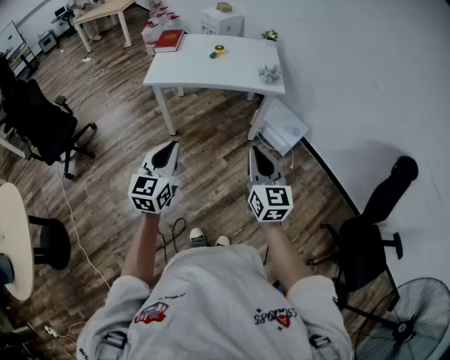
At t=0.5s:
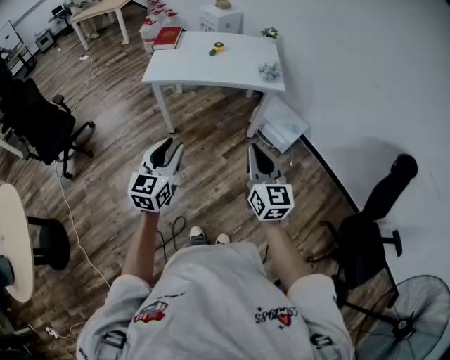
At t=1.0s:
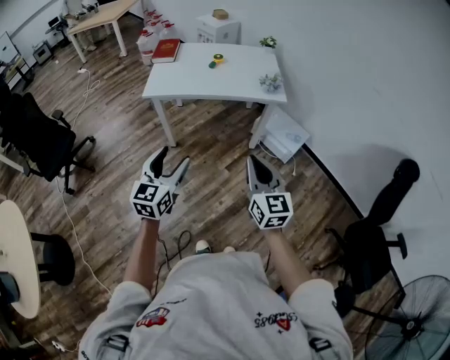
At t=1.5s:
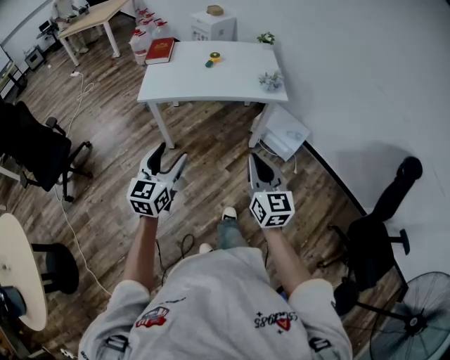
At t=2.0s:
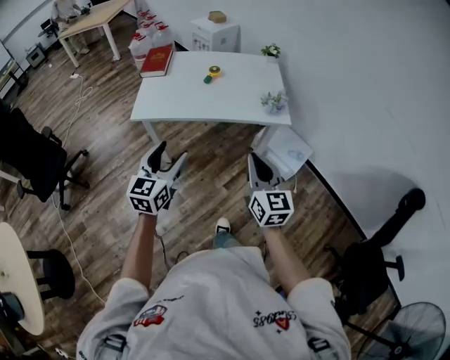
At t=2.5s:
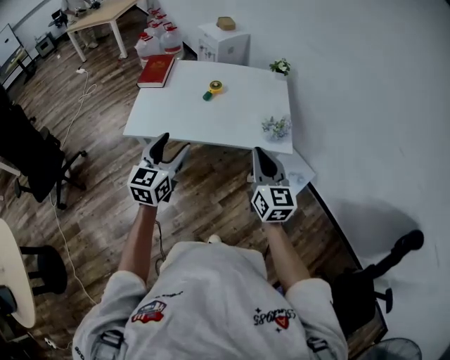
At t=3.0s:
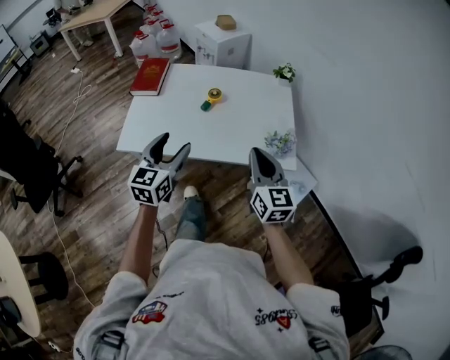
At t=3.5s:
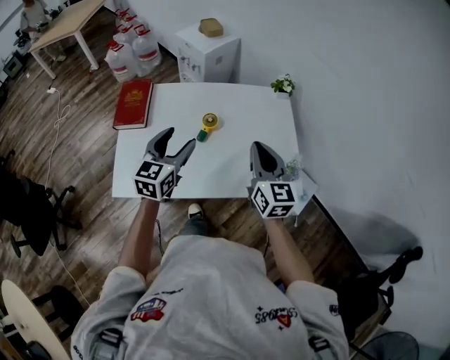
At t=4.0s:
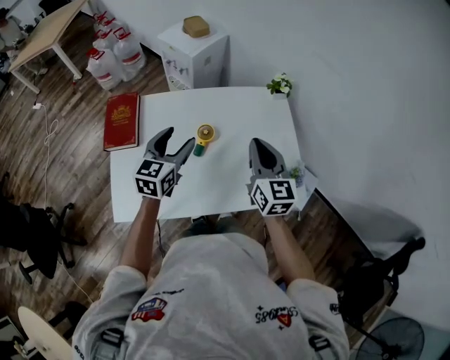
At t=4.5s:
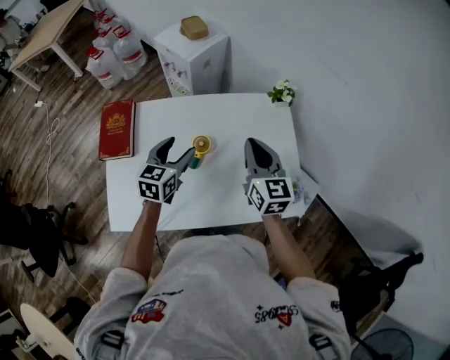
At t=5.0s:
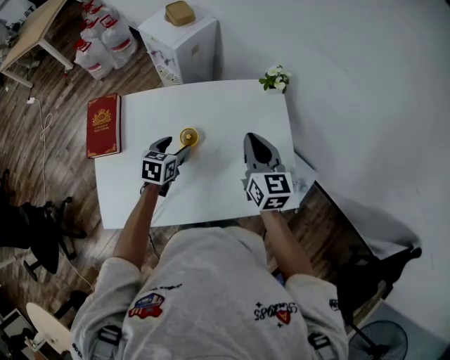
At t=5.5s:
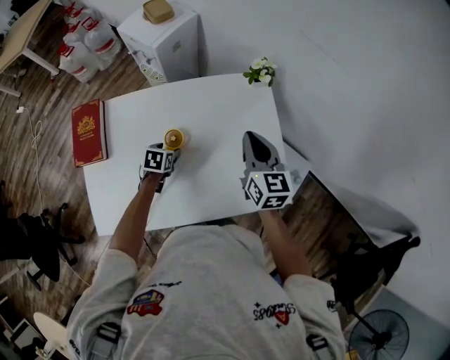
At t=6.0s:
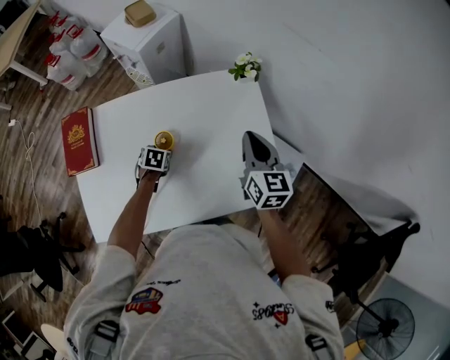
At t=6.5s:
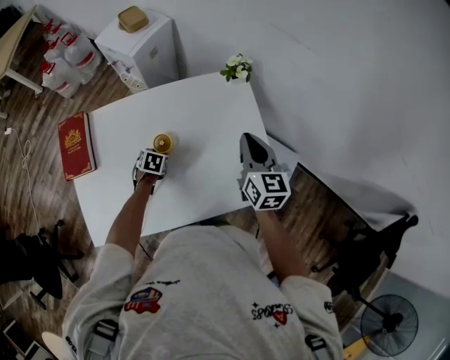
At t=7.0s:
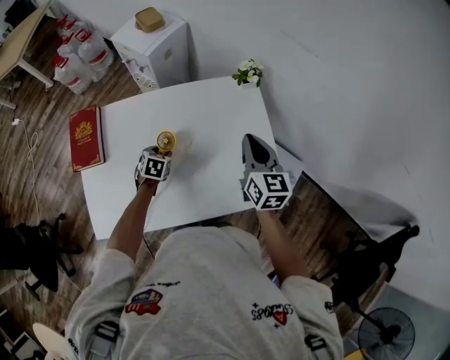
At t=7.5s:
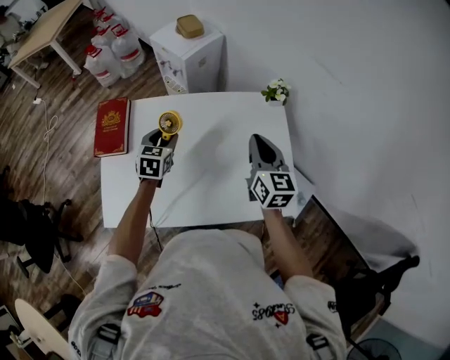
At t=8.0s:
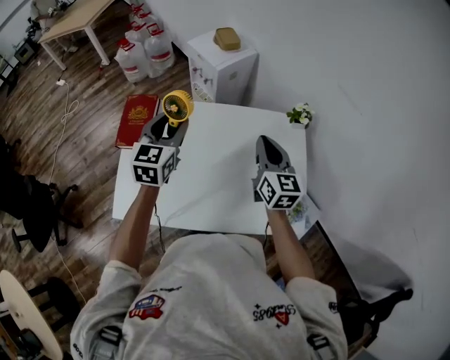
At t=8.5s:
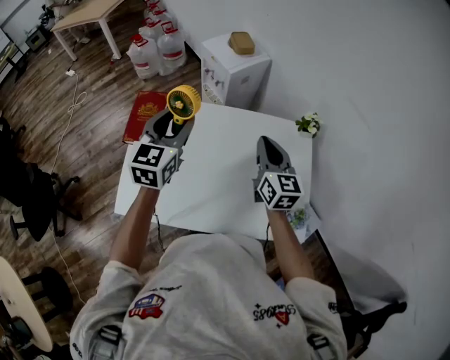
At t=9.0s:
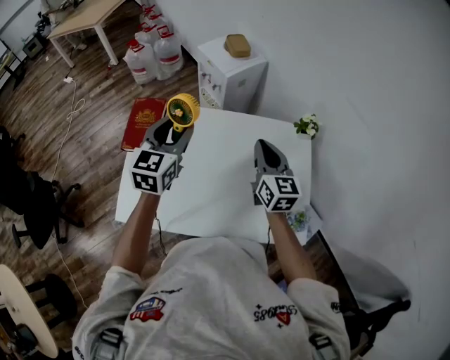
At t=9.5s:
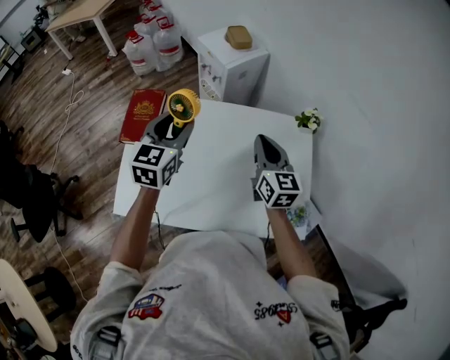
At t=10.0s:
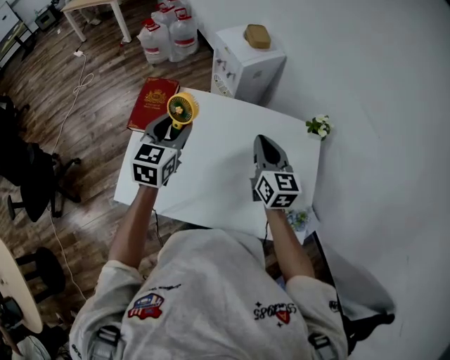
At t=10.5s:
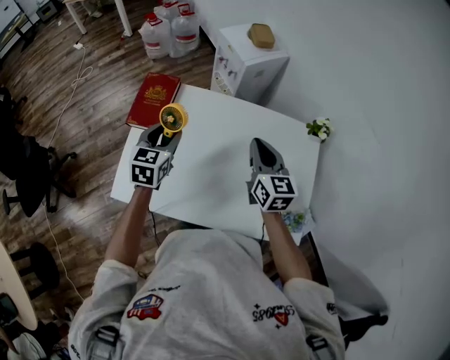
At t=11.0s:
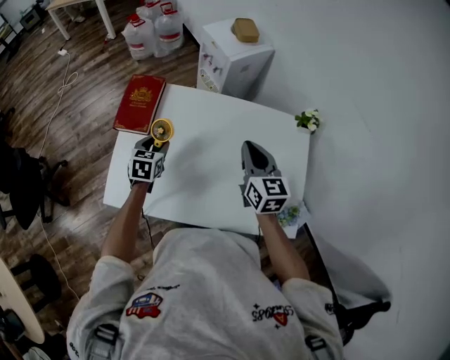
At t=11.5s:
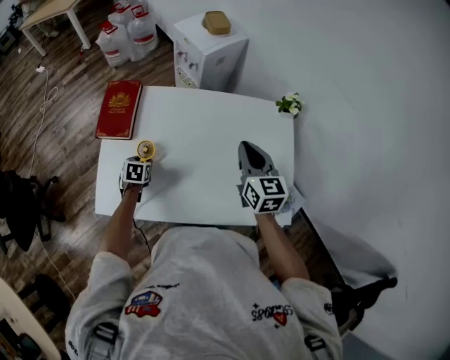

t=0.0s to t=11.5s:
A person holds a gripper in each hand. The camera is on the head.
t=0.0s to t=2.0s: The grippers both shift forward by approximately 30 cm. The left gripper opens.
t=2.0s to t=4.0s: The two grippers travel together, forward, roughly 60 cm.
t=4.0s to t=6.0s: The left gripper travels downward and forward by about 35 cm, and tilts its fingers roughly 50 degrees downward. Meanwhile the right gripper travels to the right, forward and downward by about 20 cm.
t=6.0s to t=7.5s: The right gripper moves to the left and upward, roughly 10 cm; the left gripper shifts approximately 20 cm upward and to the left, and rotates approximately 30 degrees.
t=7.5s to t=9.5s: The left gripper heads upward, covering roughly 20 cm, and swivels roughly 20 degrees; the right gripper shifts some 10 cm to the left.
t=9.5s to t=11.5s: The right gripper changes place by roughly 5 cm. The left gripper moves downward, some 35 cm, and points its fingers some 50 degrees further downward.

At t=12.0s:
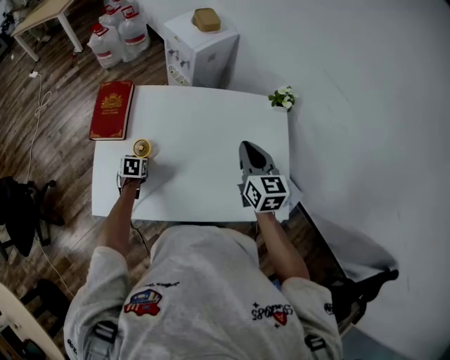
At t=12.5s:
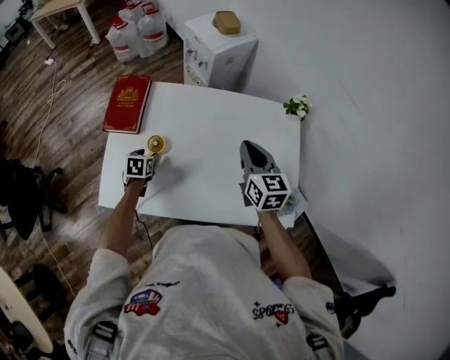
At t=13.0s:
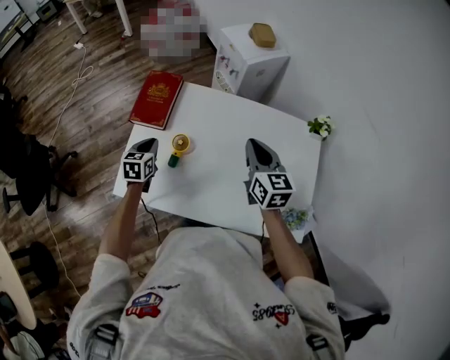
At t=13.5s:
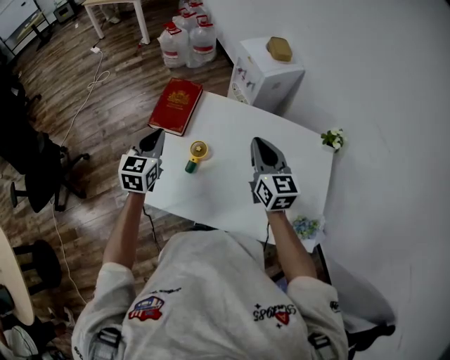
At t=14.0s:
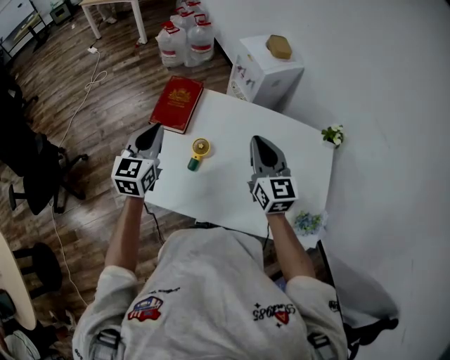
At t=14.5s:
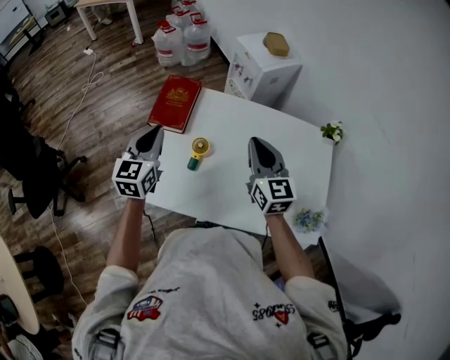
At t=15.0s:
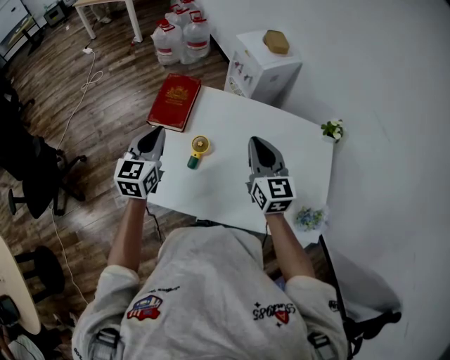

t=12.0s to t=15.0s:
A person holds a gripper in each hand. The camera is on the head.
t=12.0s to t=13.5s: The left gripper travels upward by about 30 cm, angles its fingers upward, by approximately 40 degrees, and closes up, while the right gripper travels to the left by approximately 20 cm.
t=13.5s to t=15.0s: The grippers stay close to where they were, moving slightly.

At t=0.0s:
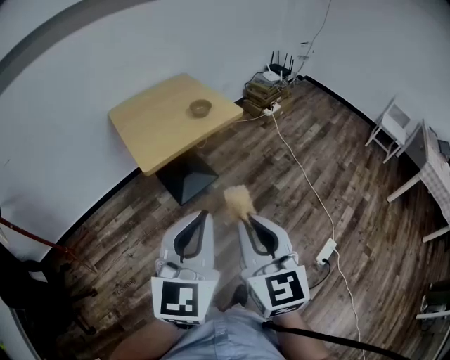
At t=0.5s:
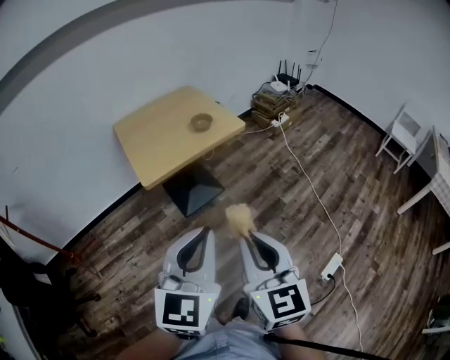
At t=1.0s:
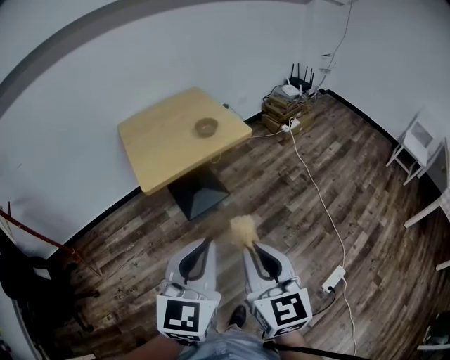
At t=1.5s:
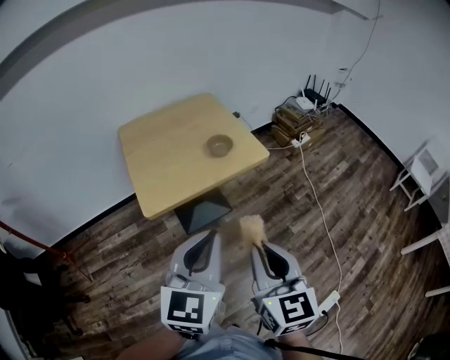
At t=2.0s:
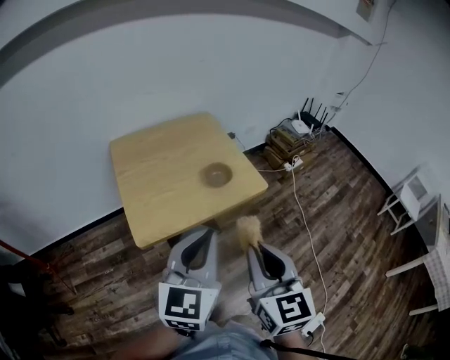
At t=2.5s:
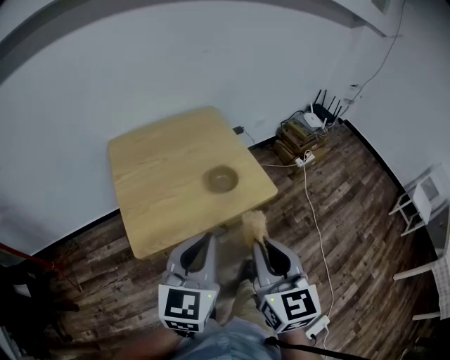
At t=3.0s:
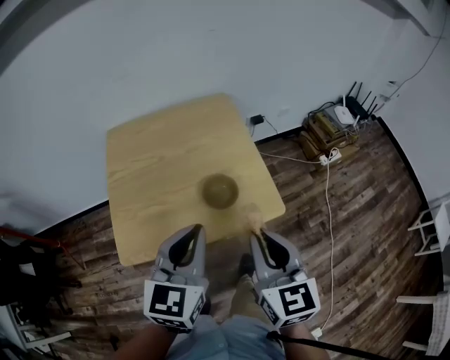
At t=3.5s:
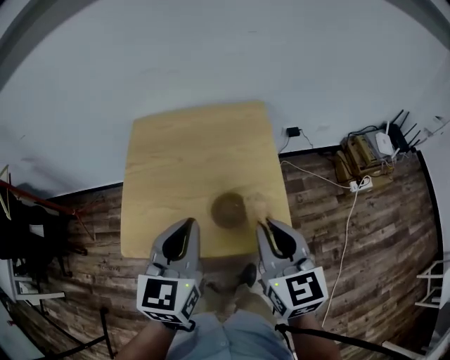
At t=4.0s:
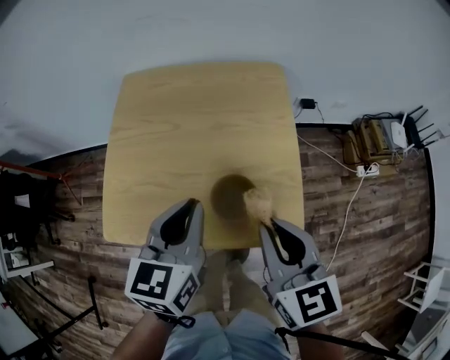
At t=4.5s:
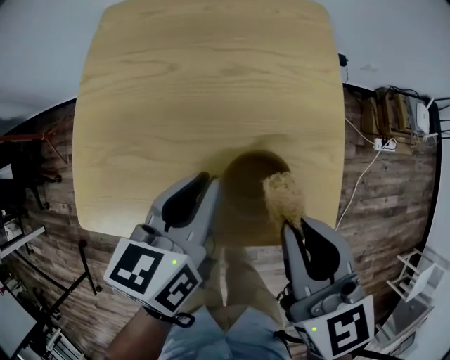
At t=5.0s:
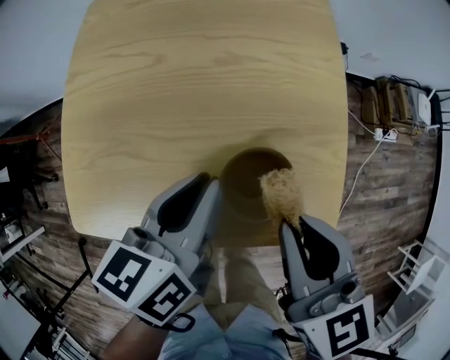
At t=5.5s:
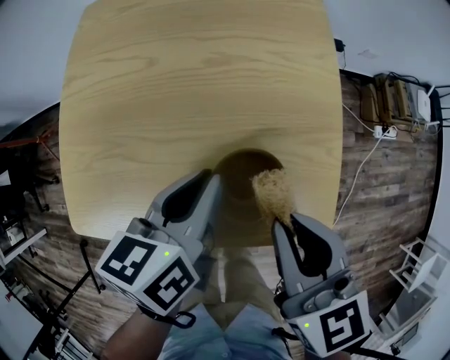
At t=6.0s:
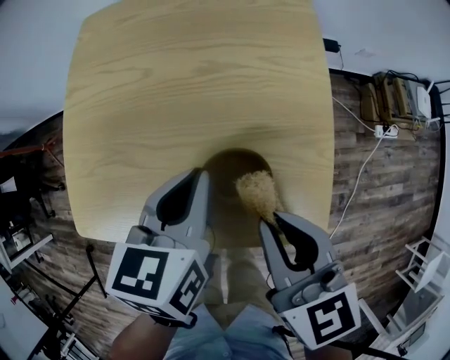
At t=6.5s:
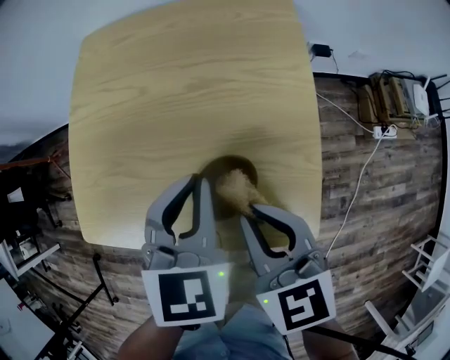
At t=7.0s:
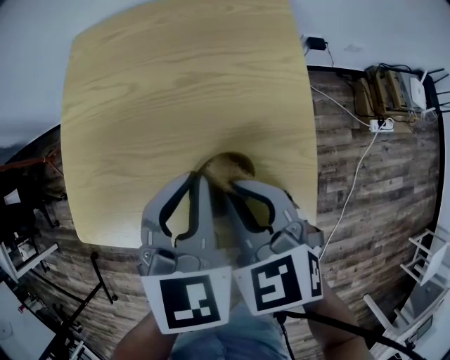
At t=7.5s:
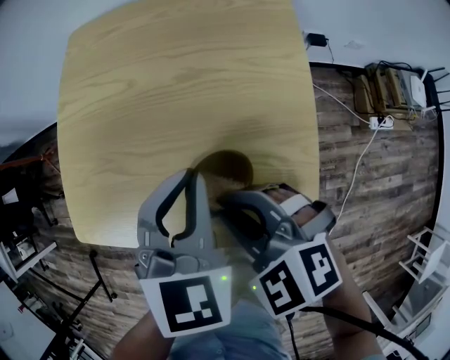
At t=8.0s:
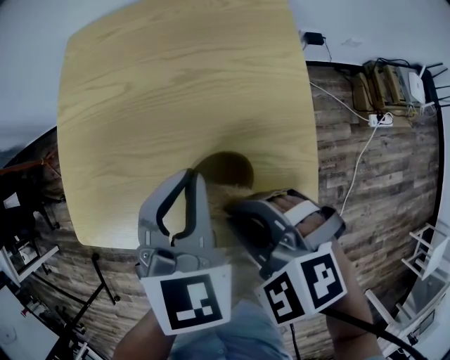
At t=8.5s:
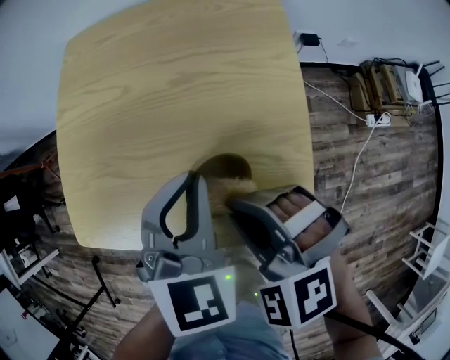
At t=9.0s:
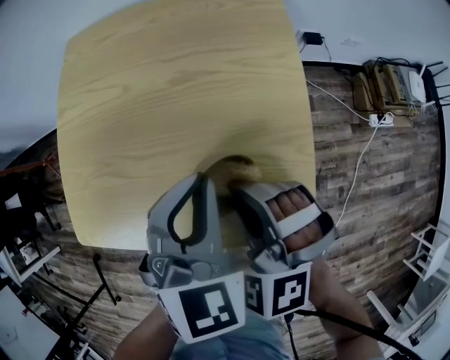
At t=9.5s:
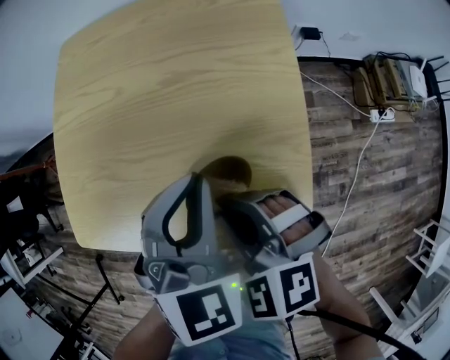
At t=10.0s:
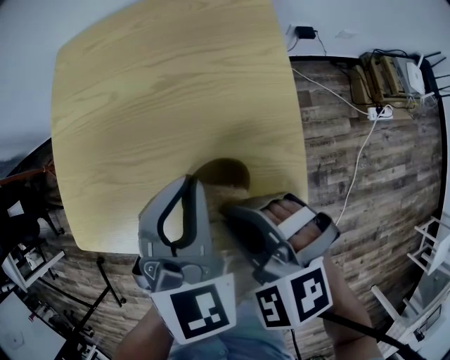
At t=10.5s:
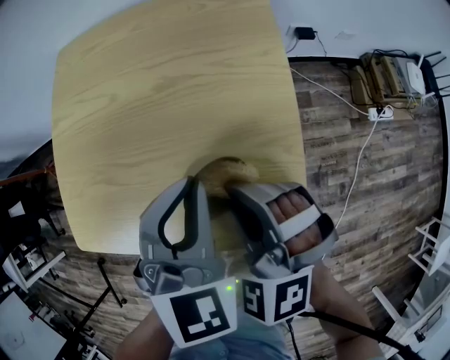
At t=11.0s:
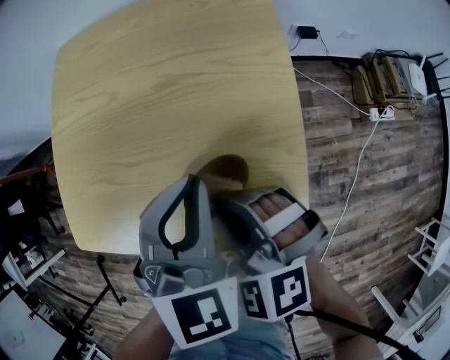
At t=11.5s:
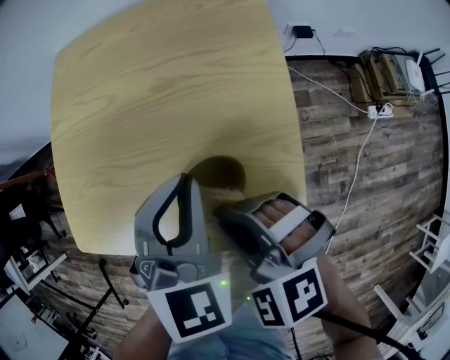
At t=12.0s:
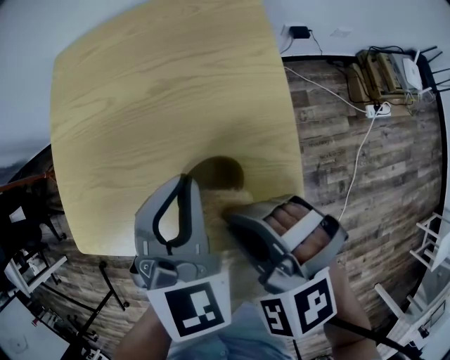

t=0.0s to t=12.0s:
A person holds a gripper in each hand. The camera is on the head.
t=0.0s to t=2.0s: Both grippers travel together forward, some 30 cm.
t=2.0s to t=4.0s: The right gripper shifts by approximately 35 cm, and rotates approximately 40 degrees. Meanwhile the left gripper ends up about 30 cm from where it was, and turns by approximately 40 degrees.
t=4.0s to t=6.0s: Both grippers move downward, roughly 10 cm.
t=6.0s to t=8.0s: The left gripper turns by roughly 40 degrees, while the right gripper shifts by approximately 5 cm, and rotates around the line of its fingers by about 50 degrees, counterclockwise from behind.
